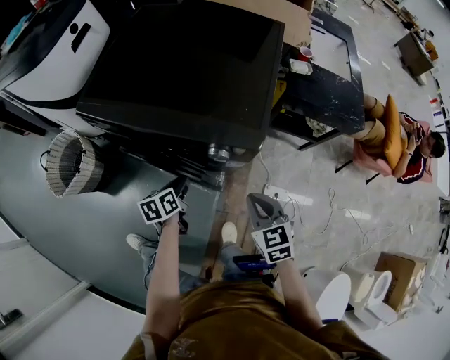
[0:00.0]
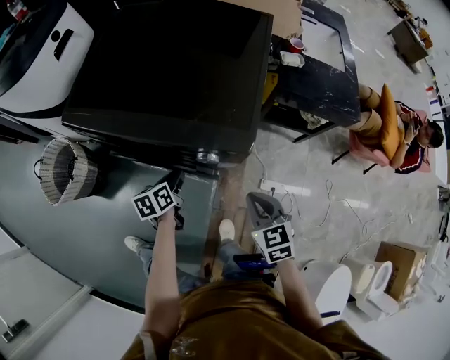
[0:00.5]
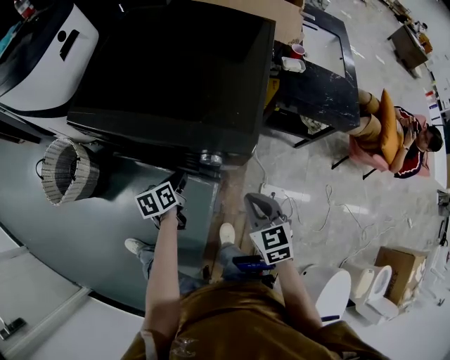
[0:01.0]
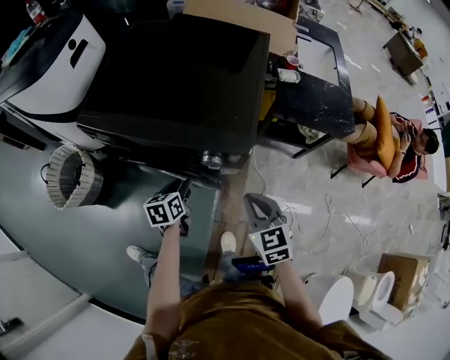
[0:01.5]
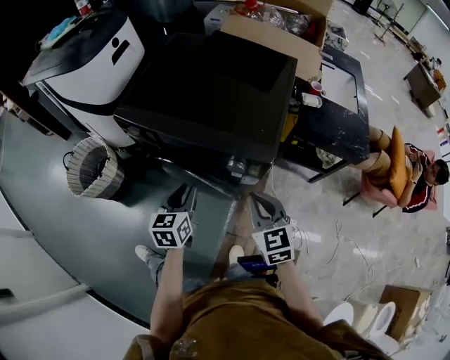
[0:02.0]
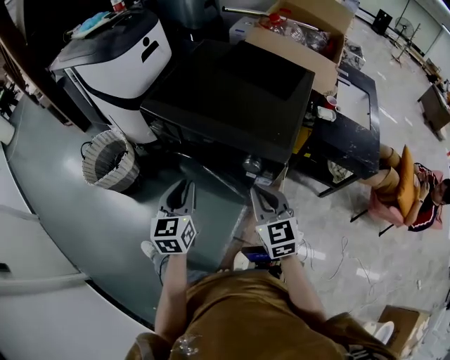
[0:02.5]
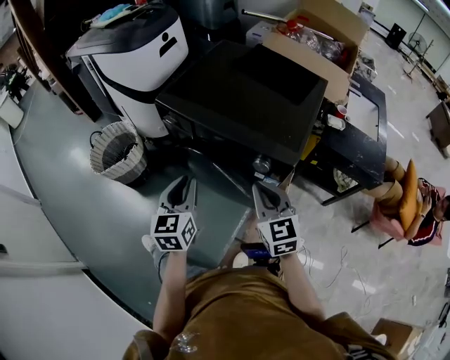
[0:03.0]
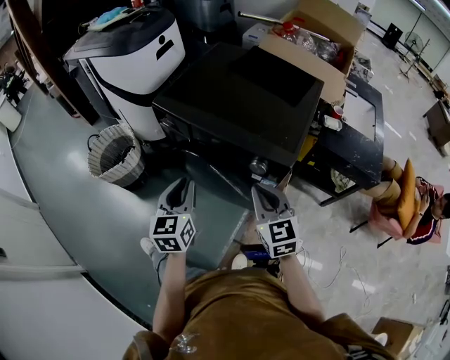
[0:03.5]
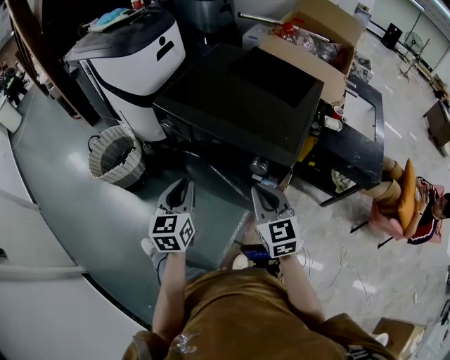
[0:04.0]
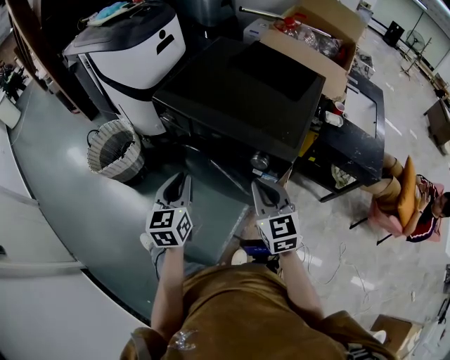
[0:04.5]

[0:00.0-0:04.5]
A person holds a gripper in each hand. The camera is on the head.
0:00.0 to 0:02.0: The right gripper shifts approximately 10 cm upward. Meanwhile the left gripper moves upward, about 15 cm, and turns by some 30 degrees.
0:02.0 to 0:04.5: The left gripper heads upward and to the left, covering roughly 10 cm, while the right gripper heads to the left, covering roughly 5 cm.

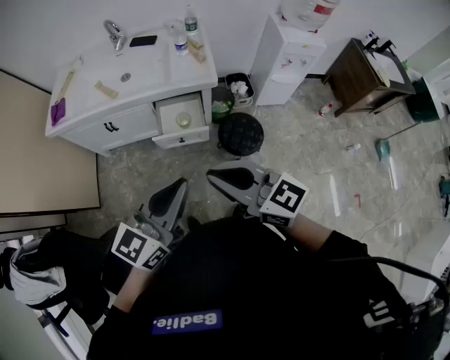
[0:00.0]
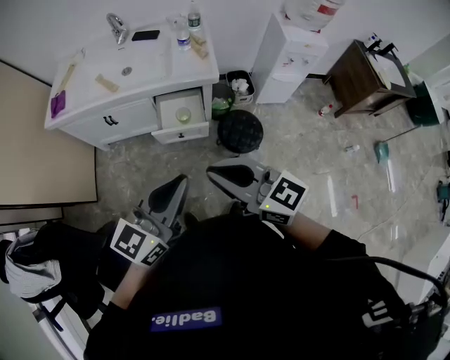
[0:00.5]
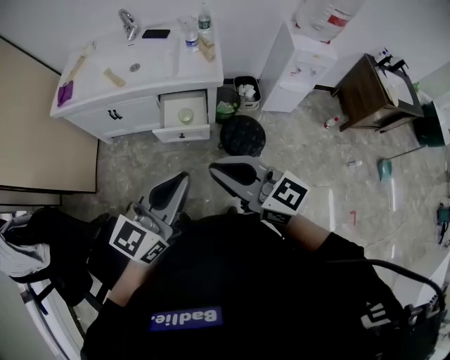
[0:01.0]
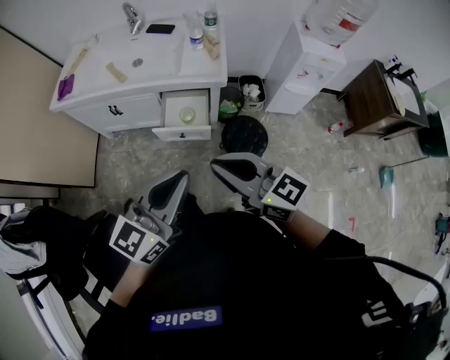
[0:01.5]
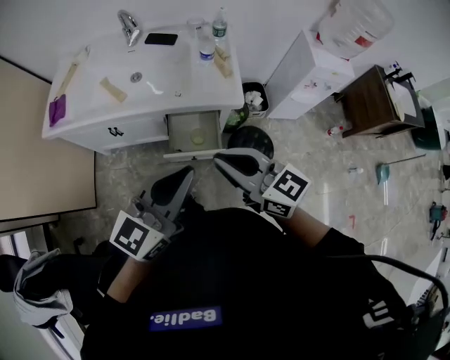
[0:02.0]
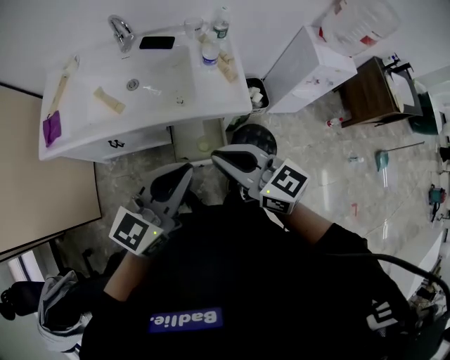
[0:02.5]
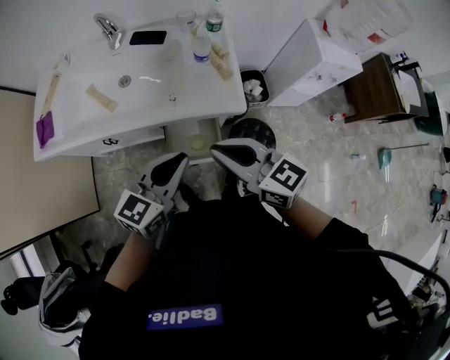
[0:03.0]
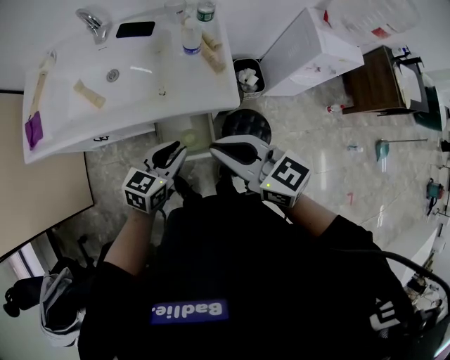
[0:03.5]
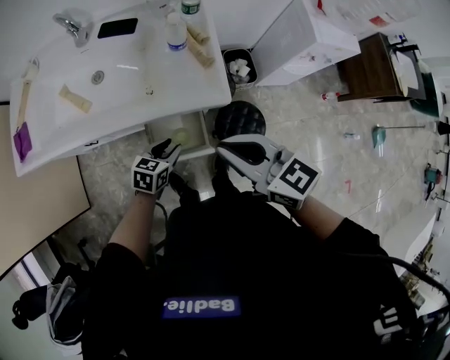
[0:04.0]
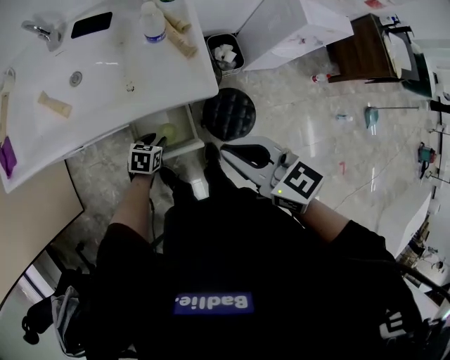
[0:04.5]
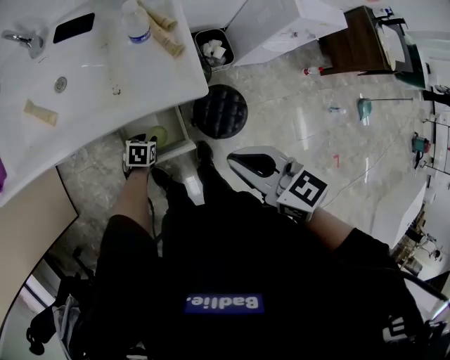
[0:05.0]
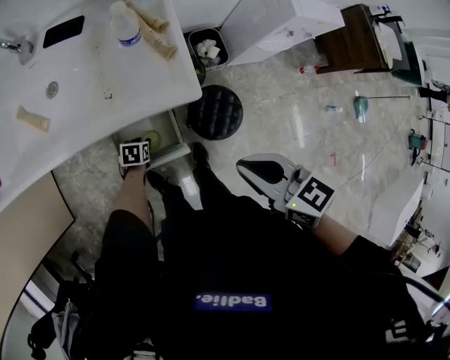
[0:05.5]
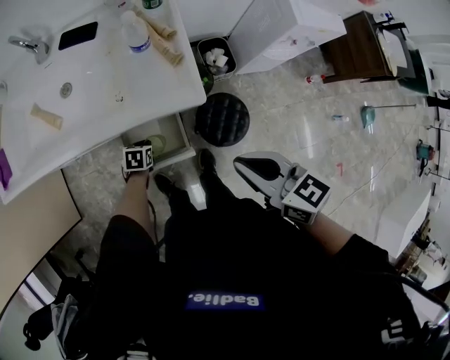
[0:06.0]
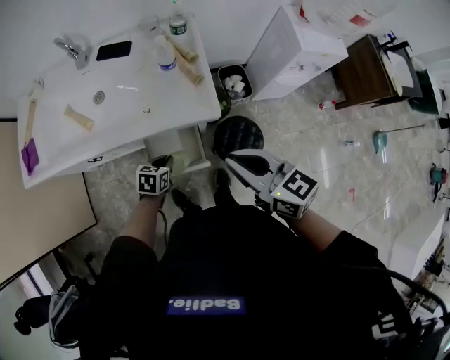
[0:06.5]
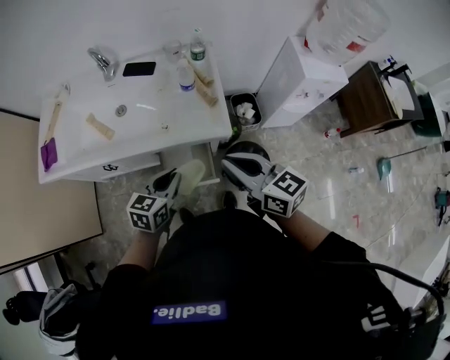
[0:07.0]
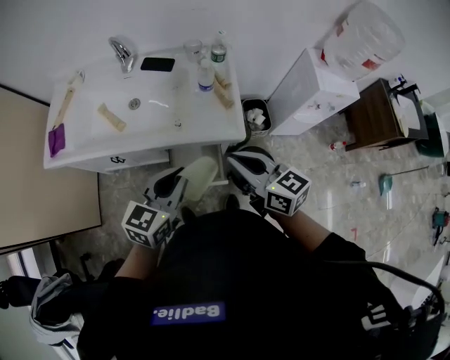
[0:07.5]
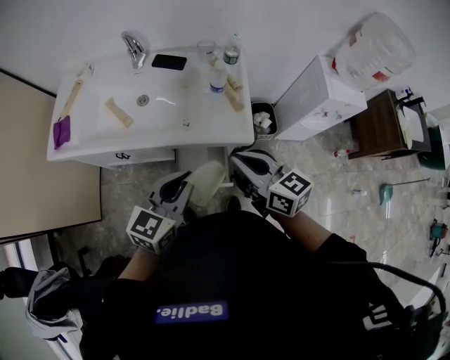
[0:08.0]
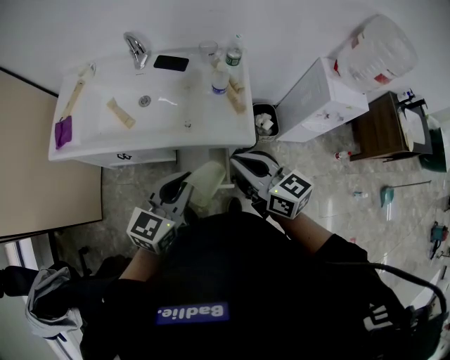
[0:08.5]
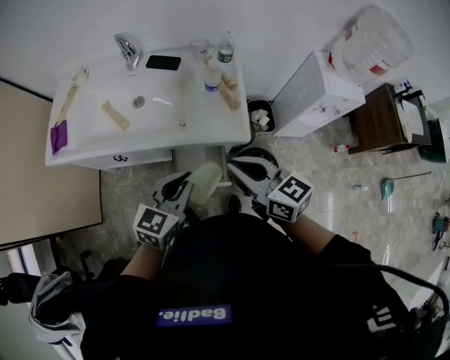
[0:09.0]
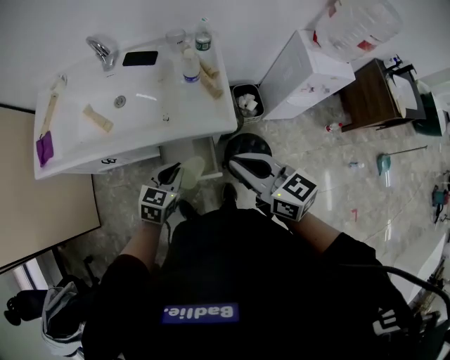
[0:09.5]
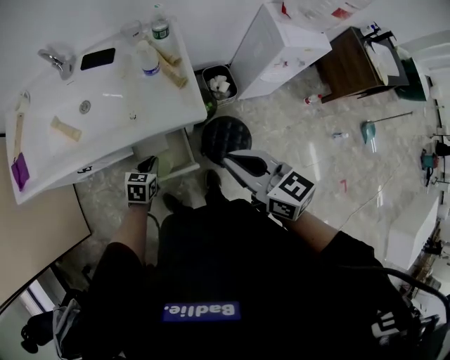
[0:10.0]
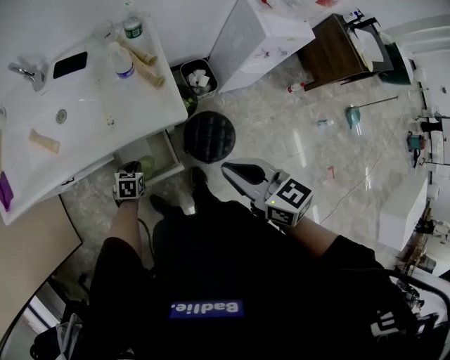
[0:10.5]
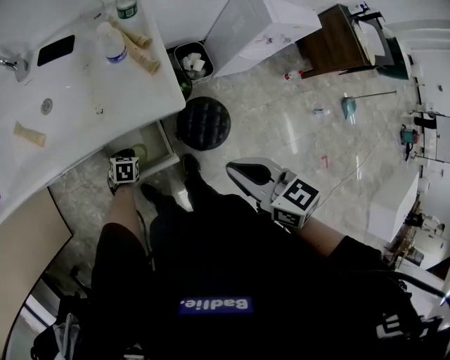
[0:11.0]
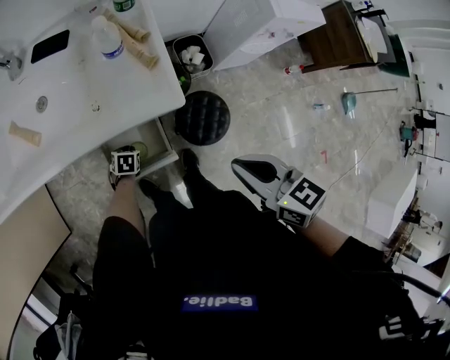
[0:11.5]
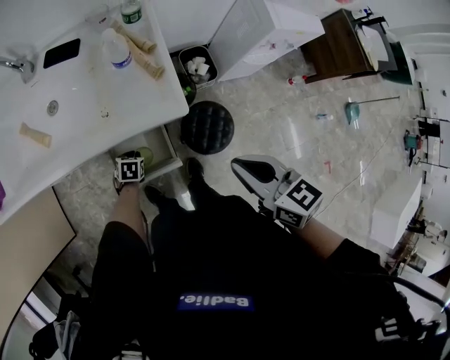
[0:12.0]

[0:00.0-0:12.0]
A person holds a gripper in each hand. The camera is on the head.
0:00.0 to 0:02.0: Both grippers travel together forward, approximately 20 cm.
0:02.0 to 0:04.0: The left gripper goes some 40 cm downward and forward, tips its fingers downward by about 40 degrees, and opens. The right gripper moves forward, to the right and downward, approximately 15 cm.
0:04.0 to 0:06.0: The right gripper goes approximately 10 cm to the right and downward, while the left gripper shifts approximately 15 cm downward, changes its angle by some 30 degrees, and closes its fingers.
0:06.0 to 0:08.0: The right gripper goes about 15 cm to the left, upward and forward. The left gripper is displaced upward by about 40 cm, and tilts its fingers some 50 degrees upward.
0:08.0 to 0:10.0: The right gripper moves to the right, roughly 10 cm. The left gripper travels downward by approximately 30 cm, and tips its fingers downward by roughly 30 degrees.
0:10.0 to 0:12.0: The left gripper travels downward by approximately 15 cm, and rotates about 20 degrees, while the right gripper is displaced downward and to the right by about 5 cm.

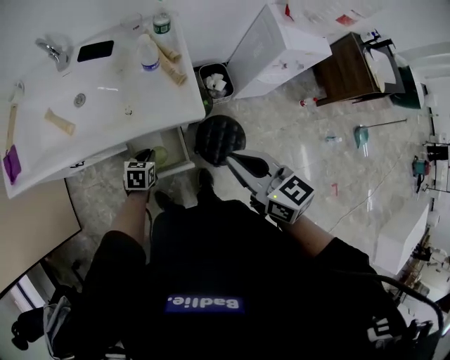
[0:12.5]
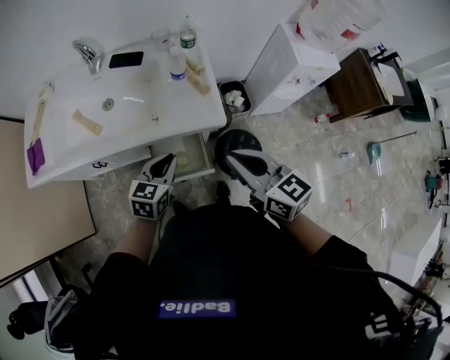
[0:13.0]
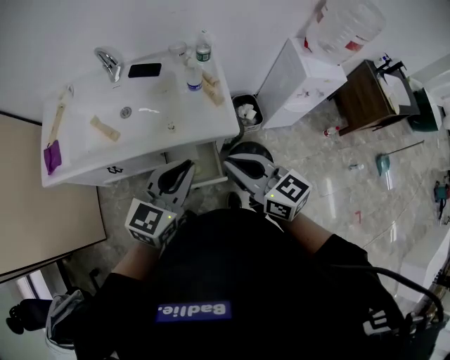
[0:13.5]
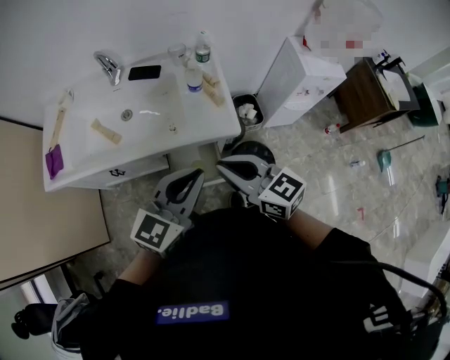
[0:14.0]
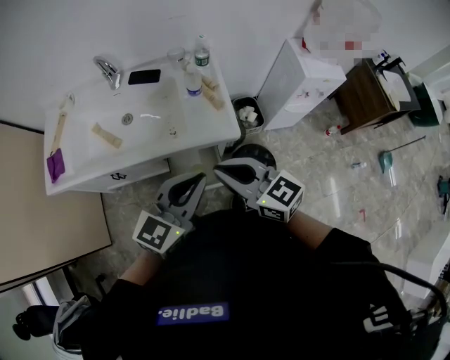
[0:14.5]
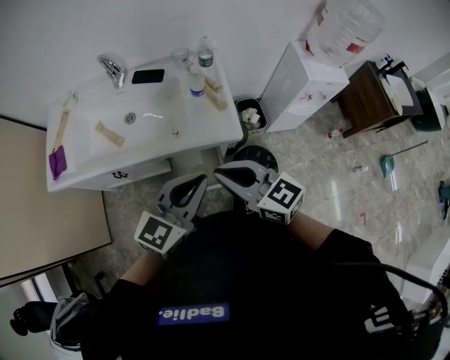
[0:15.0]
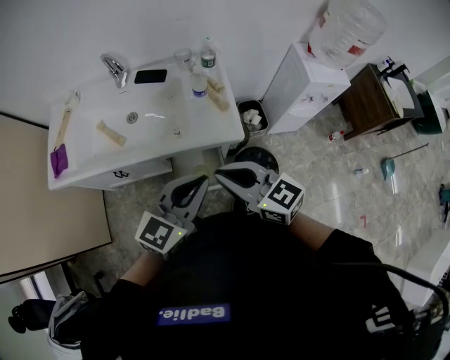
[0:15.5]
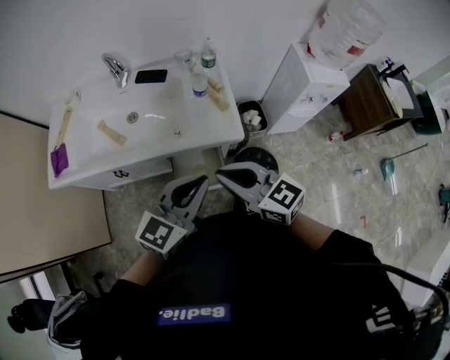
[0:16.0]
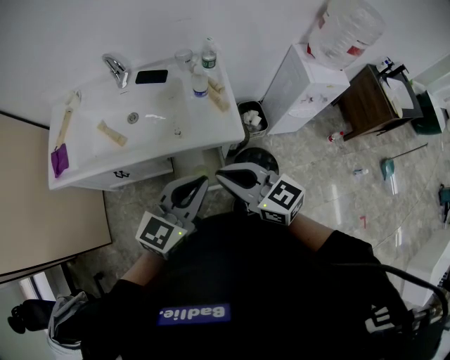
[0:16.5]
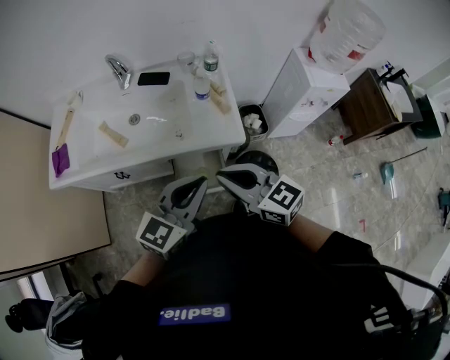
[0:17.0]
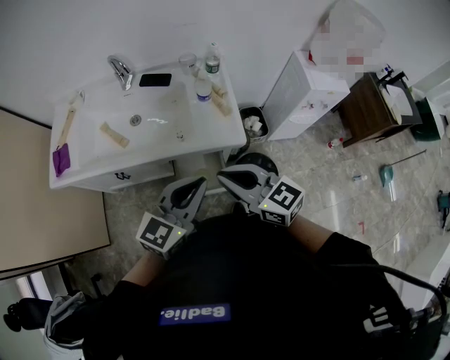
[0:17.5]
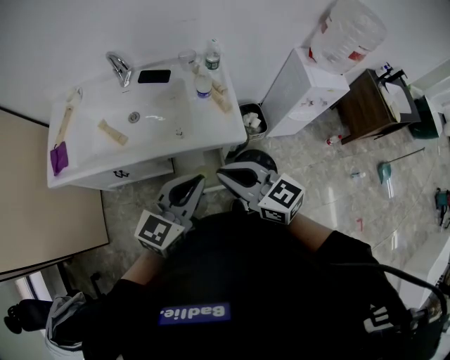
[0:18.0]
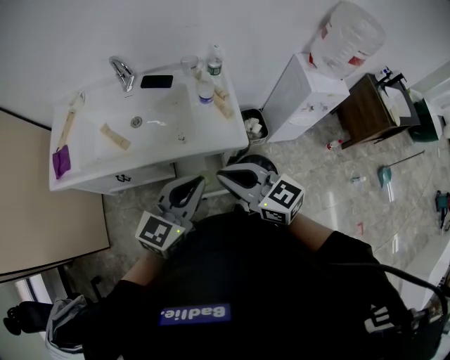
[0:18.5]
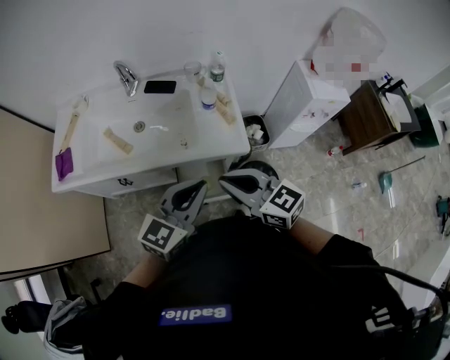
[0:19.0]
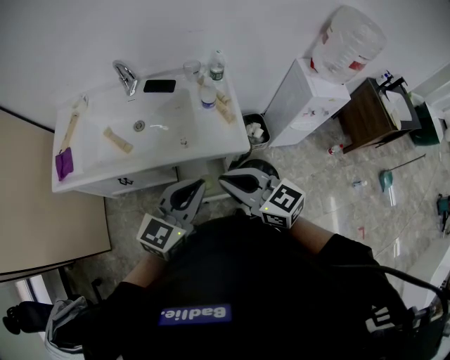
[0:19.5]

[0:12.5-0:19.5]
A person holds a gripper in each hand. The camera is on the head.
0:12.5 to 0:14.5: The right gripper travels to the left and upward by roughly 15 cm, and turns by some 20 degrees, while the left gripper is displaced upward by approximately 40 cm, and tips its fingers upward by approximately 50 degrees.
0:14.5 to 0:19.5: There are only small adjustments of the grippers.

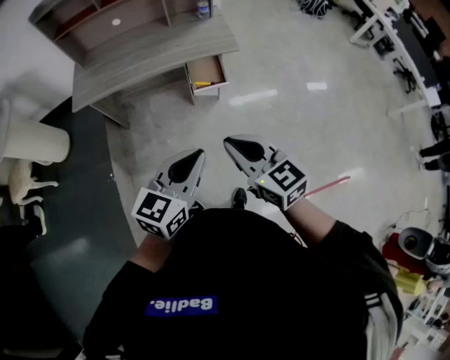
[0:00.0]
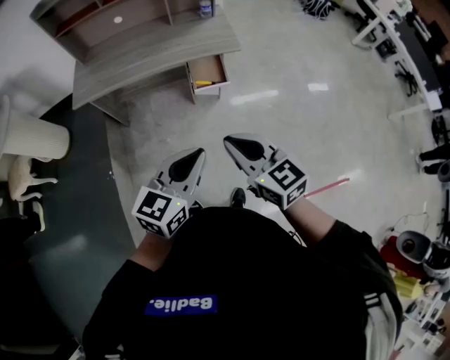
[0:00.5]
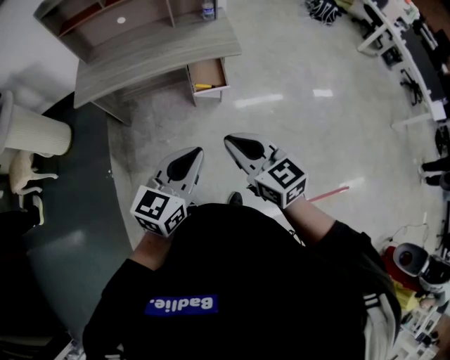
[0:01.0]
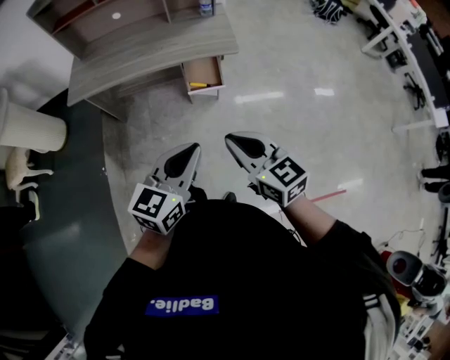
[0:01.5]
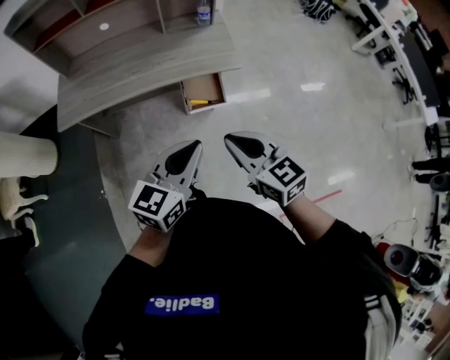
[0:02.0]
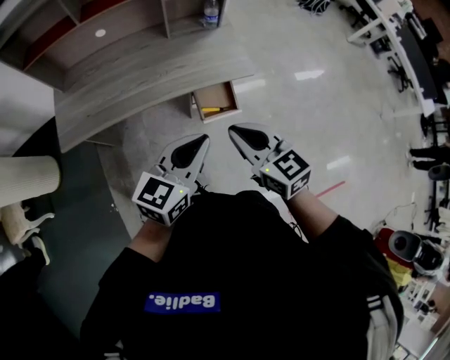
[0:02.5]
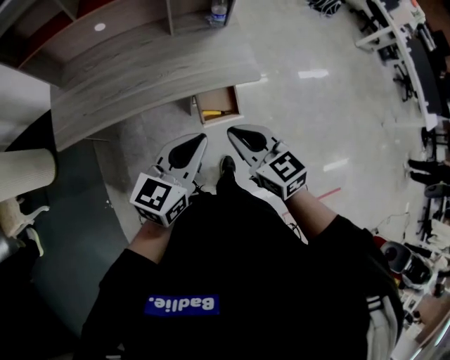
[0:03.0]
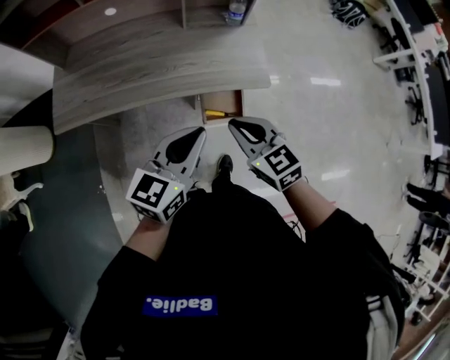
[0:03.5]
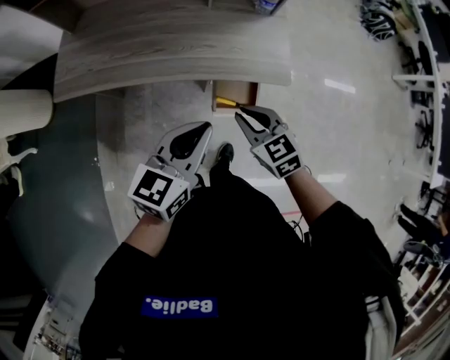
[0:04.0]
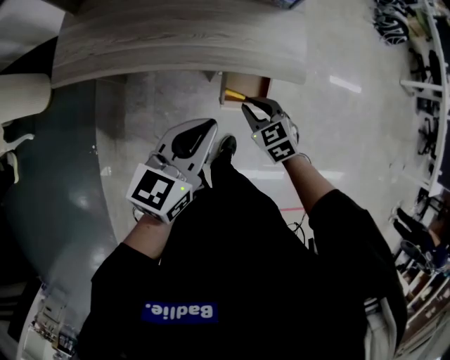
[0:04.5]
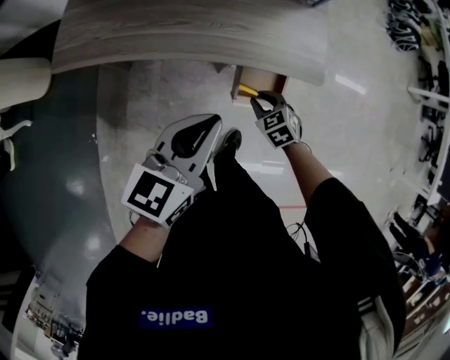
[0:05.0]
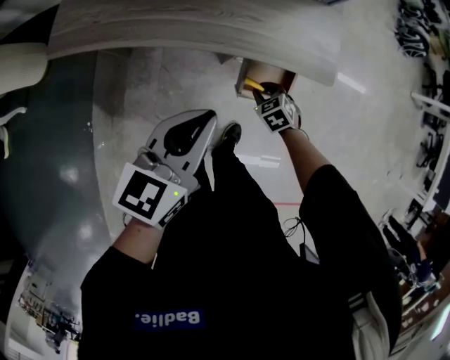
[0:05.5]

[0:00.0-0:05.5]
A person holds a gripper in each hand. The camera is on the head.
0:00.0 to 0:02.0: Both grippers travel together forward, some 20 cm.
0:02.0 to 0:03.5: Both grippers move forward, roughly 20 cm.
0:03.5 to 0:05.5: The left gripper goes some 15 cm to the left and downward, while the right gripper is displaced downward by approximately 35 cm, and points its fingers approximately 40 degrees further downward.
